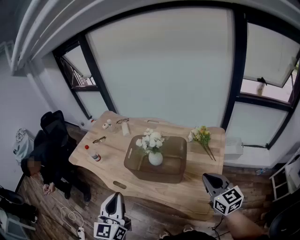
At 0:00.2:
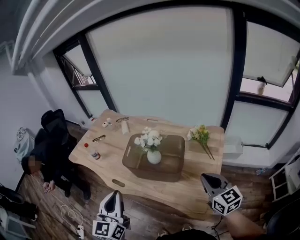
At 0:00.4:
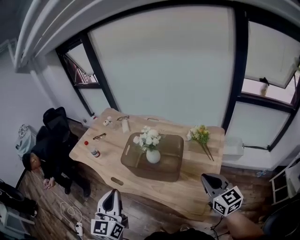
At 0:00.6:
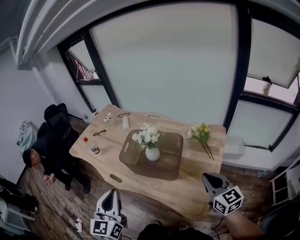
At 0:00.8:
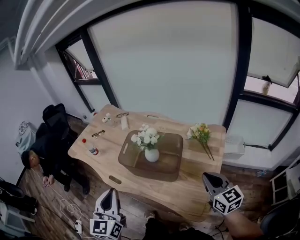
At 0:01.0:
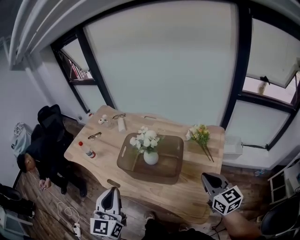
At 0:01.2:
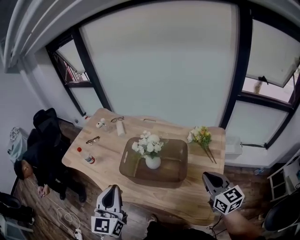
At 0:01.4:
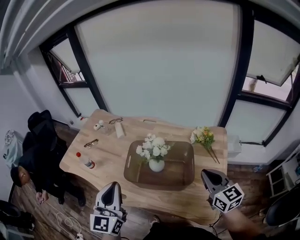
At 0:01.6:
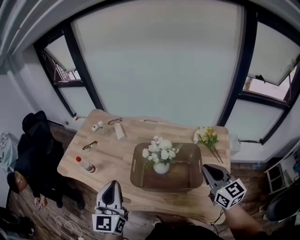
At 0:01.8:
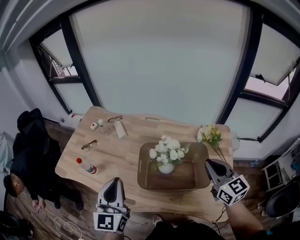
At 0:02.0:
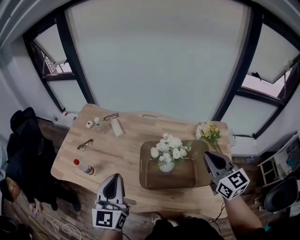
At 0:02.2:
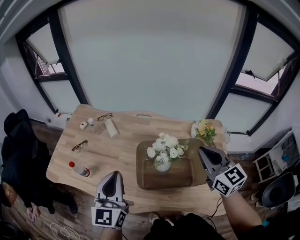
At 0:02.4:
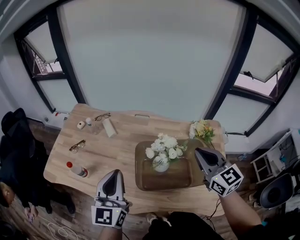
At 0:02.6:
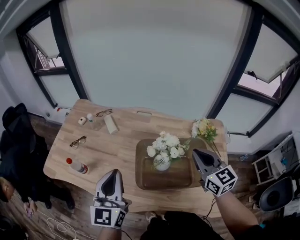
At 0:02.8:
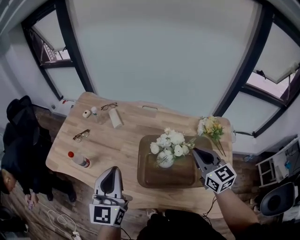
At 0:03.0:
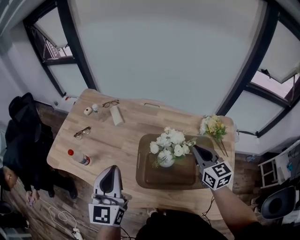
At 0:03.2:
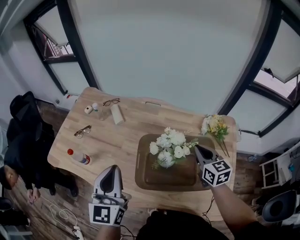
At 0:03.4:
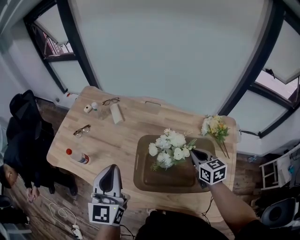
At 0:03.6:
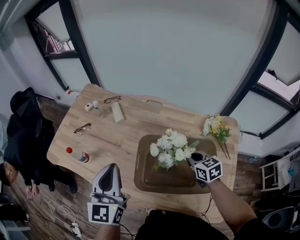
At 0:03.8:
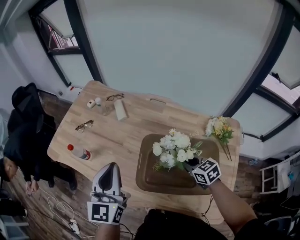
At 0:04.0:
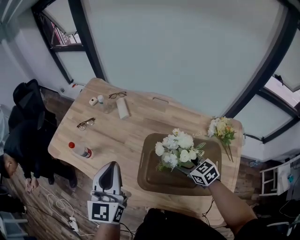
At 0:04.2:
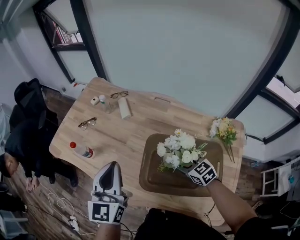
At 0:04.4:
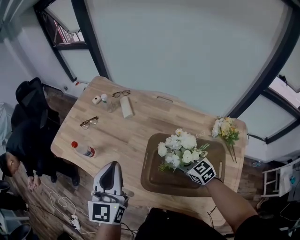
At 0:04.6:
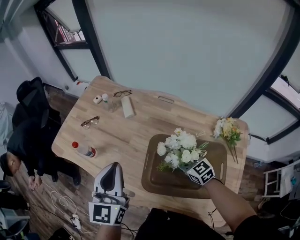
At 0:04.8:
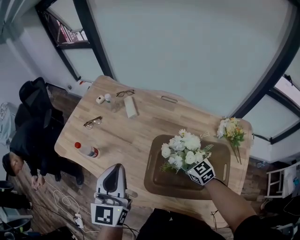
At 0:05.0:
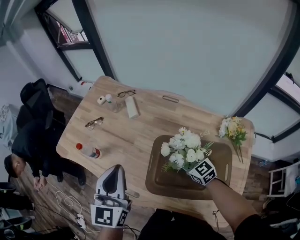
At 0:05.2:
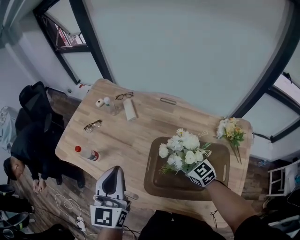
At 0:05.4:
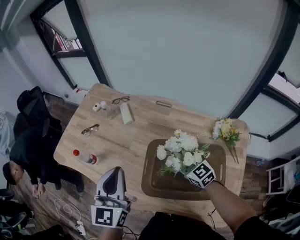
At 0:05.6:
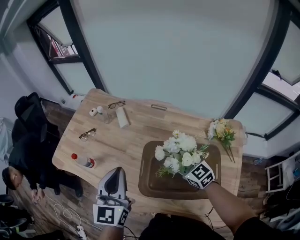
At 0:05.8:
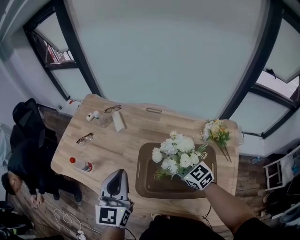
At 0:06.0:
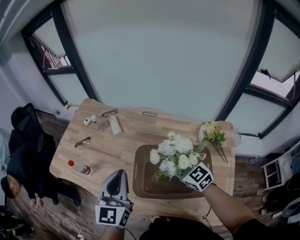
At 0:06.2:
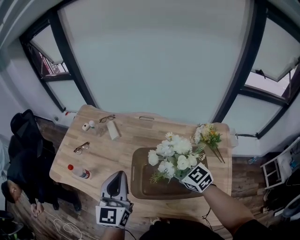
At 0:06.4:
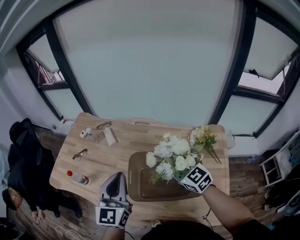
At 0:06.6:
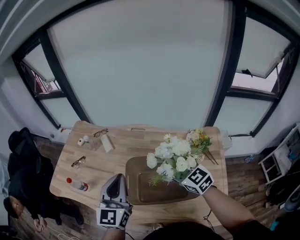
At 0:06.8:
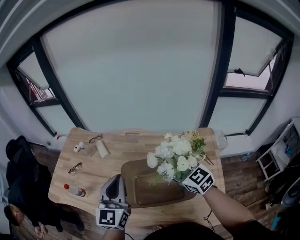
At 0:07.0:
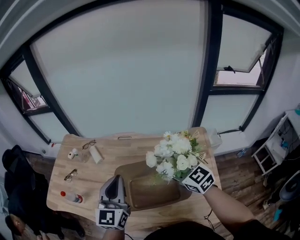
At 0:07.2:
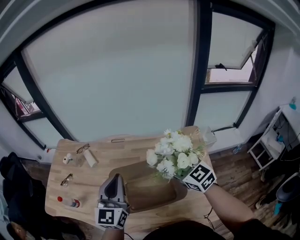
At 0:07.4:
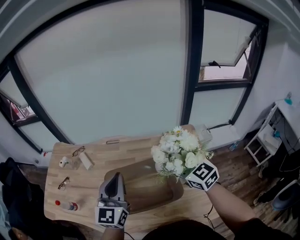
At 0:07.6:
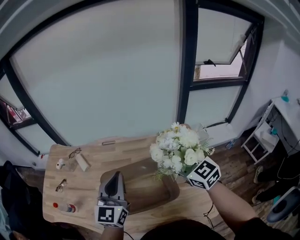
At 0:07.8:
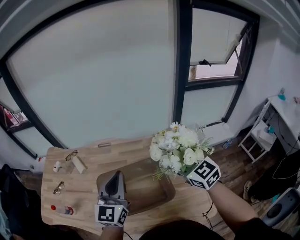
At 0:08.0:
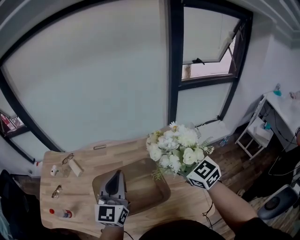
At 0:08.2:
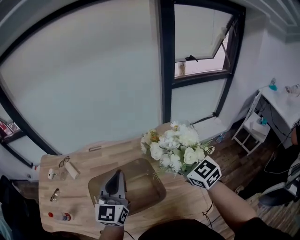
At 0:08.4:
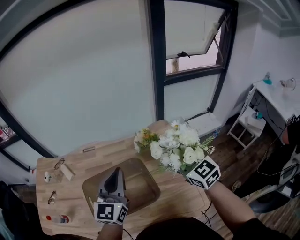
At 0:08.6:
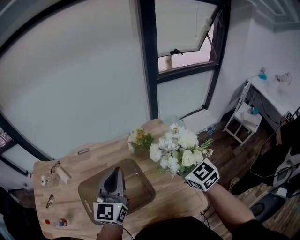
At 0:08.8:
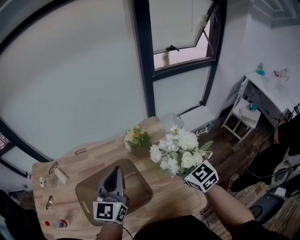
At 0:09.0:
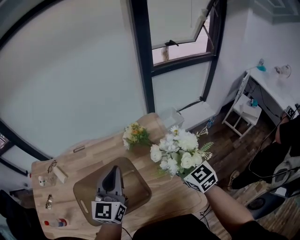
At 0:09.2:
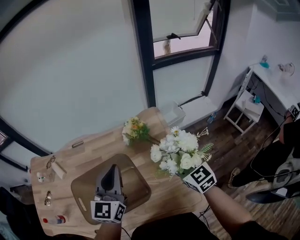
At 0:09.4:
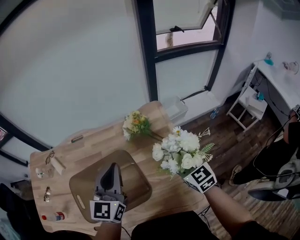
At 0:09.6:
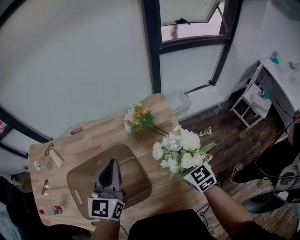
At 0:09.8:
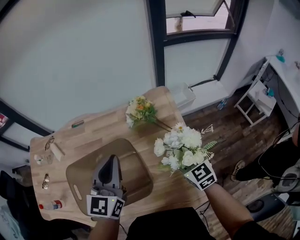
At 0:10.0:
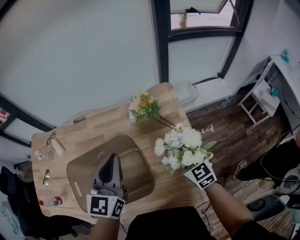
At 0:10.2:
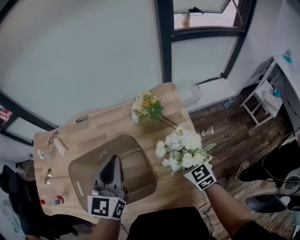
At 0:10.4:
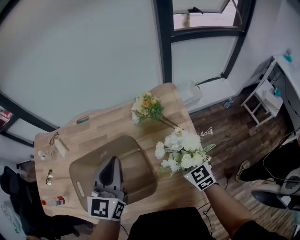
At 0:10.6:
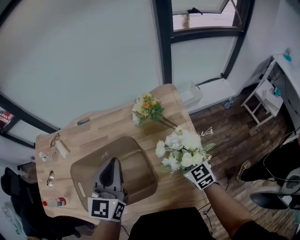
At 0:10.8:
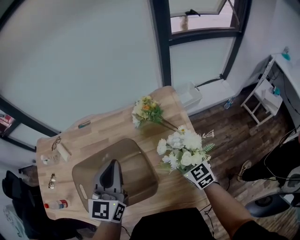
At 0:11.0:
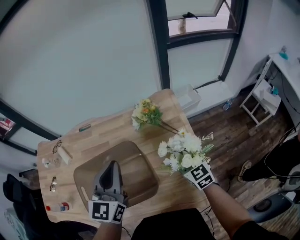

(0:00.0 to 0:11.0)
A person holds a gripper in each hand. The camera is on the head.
0:00.0 - 0:01.6: The left gripper goes approximately 20 cm forward. The right gripper travels forward and to the left by about 15 cm.
0:01.6 - 0:03.2: The left gripper shifts about 10 cm forward; the right gripper travels forward and downward by approximately 20 cm.
0:03.2 - 0:04.8: The right gripper heads to the left, downward and forward, covering approximately 15 cm, rotates about 30 degrees, and opens up.
0:04.8 - 0:06.2: The right gripper travels upward by approximately 15 cm. The left gripper shifts about 5 cm to the right.
0:06.2 - 0:07.8: The left gripper goes approximately 20 cm to the right, and changes its angle by roughly 20 degrees. Meanwhile the right gripper travels to the right and upward by approximately 25 cm, and swivels some 20 degrees.
0:07.8 - 0:09.4: The left gripper is displaced to the right and downward by about 15 cm, while the right gripper travels downward and to the right by roughly 20 cm.
0:09.4 - 0:11.0: The right gripper goes about 10 cm downward.

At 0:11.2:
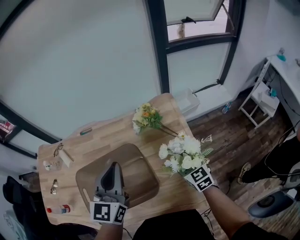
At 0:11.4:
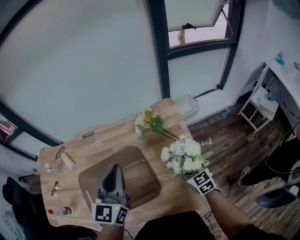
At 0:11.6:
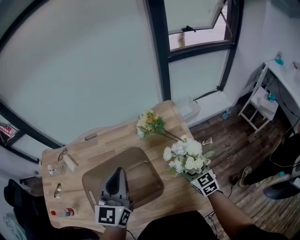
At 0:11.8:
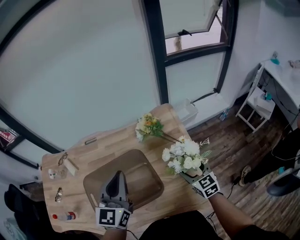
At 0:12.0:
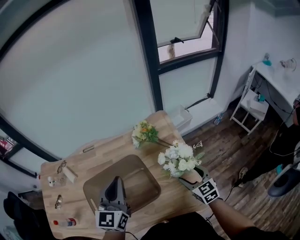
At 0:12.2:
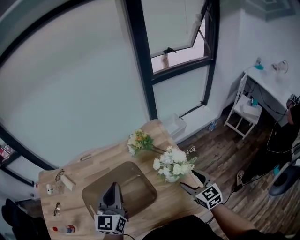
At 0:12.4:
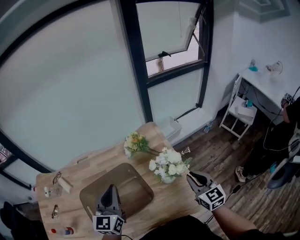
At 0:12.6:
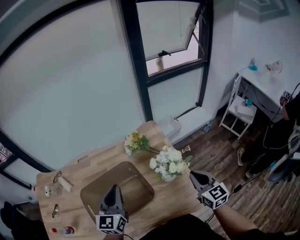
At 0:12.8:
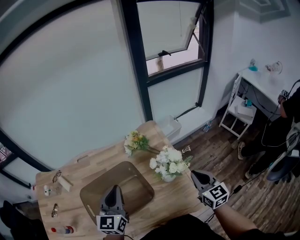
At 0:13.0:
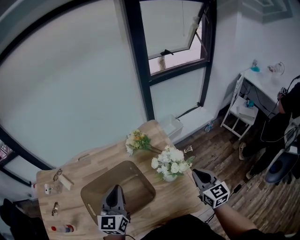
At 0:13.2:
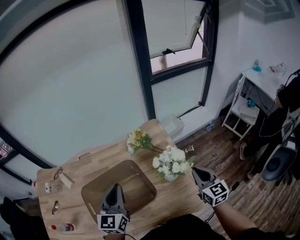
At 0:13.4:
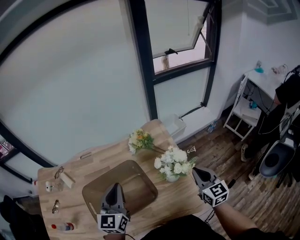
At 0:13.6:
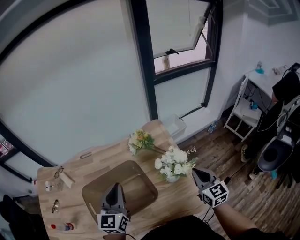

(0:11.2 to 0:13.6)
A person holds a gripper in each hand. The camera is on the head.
0:11.2 - 0:12.4: The right gripper is displaced upward, backward and to the right by some 20 cm, rotates some 20 degrees, and closes up.
0:12.4 - 0:13.6: There are only small adjustments of the grippers.

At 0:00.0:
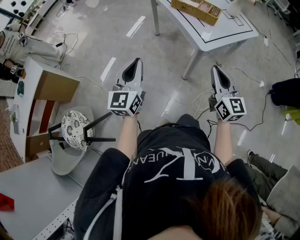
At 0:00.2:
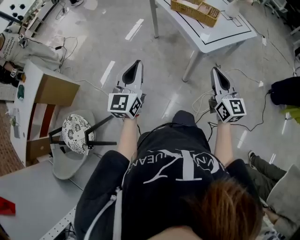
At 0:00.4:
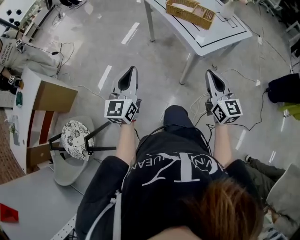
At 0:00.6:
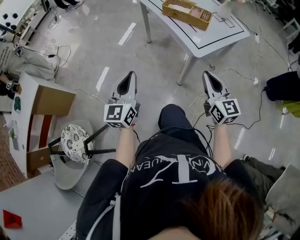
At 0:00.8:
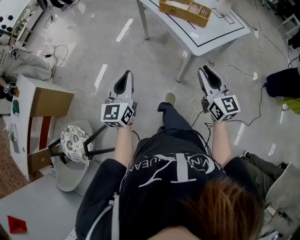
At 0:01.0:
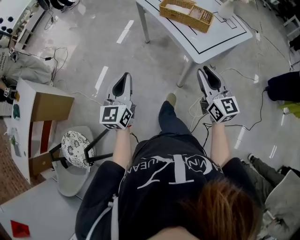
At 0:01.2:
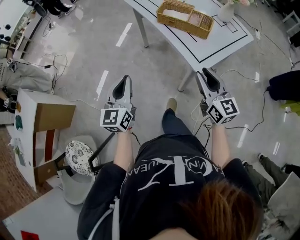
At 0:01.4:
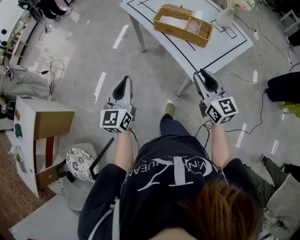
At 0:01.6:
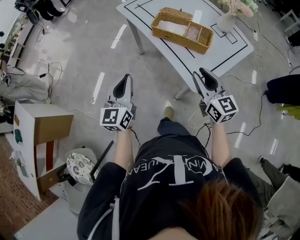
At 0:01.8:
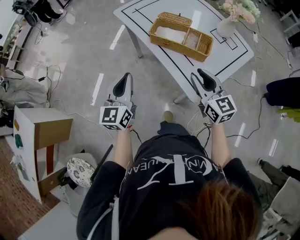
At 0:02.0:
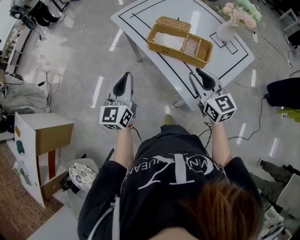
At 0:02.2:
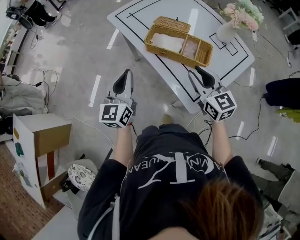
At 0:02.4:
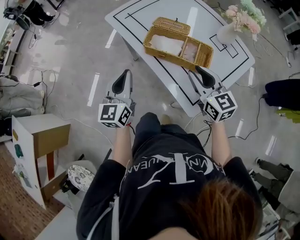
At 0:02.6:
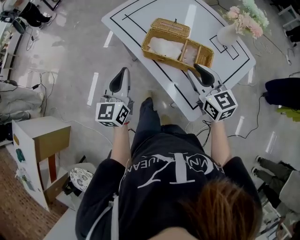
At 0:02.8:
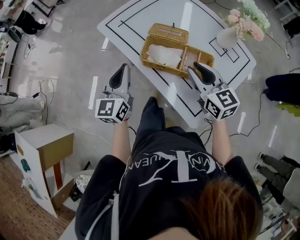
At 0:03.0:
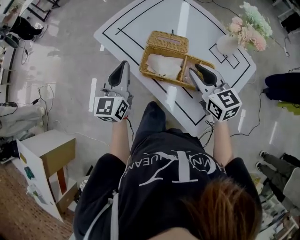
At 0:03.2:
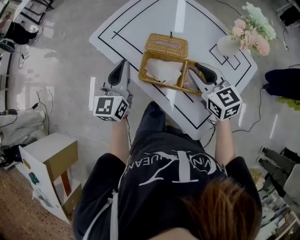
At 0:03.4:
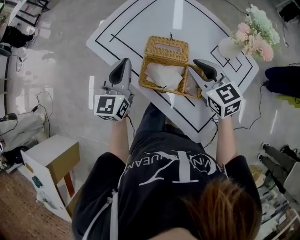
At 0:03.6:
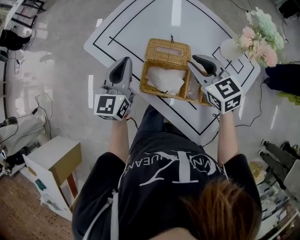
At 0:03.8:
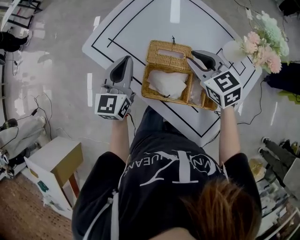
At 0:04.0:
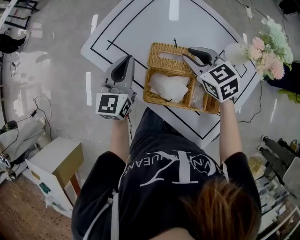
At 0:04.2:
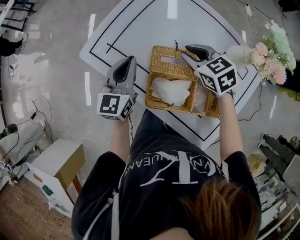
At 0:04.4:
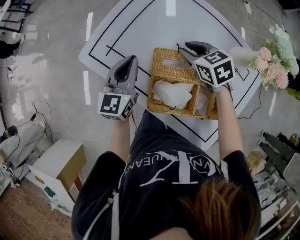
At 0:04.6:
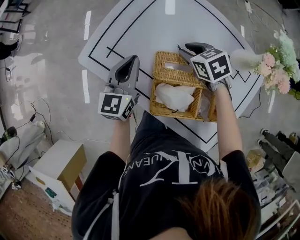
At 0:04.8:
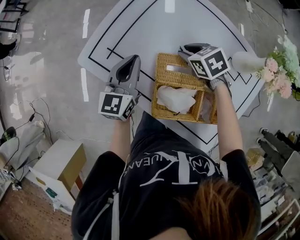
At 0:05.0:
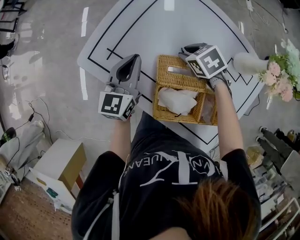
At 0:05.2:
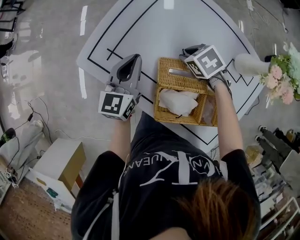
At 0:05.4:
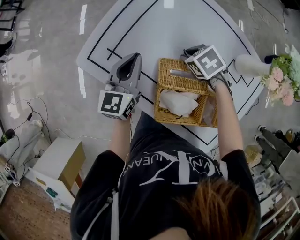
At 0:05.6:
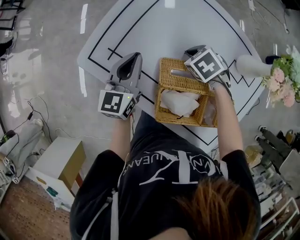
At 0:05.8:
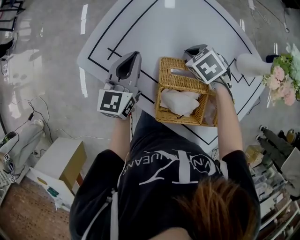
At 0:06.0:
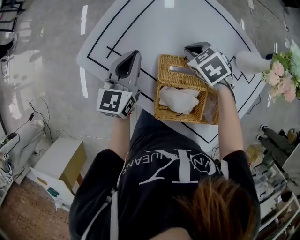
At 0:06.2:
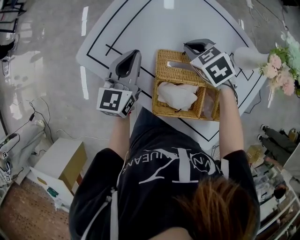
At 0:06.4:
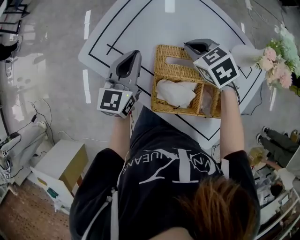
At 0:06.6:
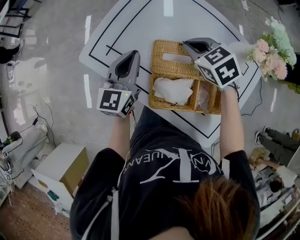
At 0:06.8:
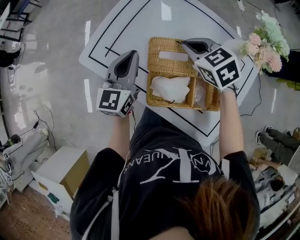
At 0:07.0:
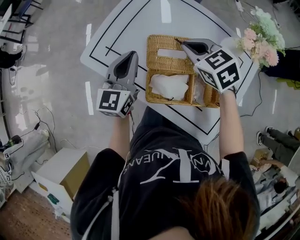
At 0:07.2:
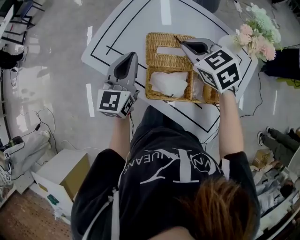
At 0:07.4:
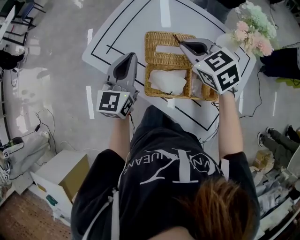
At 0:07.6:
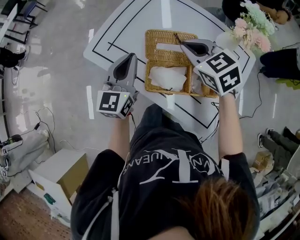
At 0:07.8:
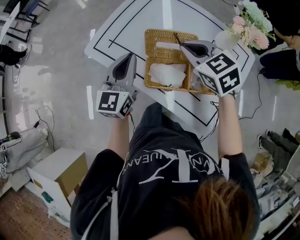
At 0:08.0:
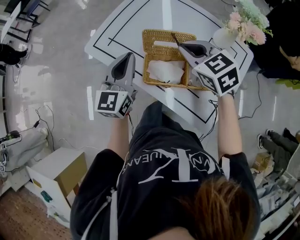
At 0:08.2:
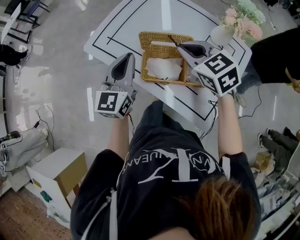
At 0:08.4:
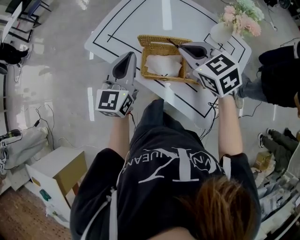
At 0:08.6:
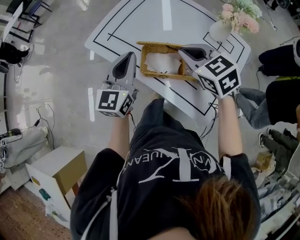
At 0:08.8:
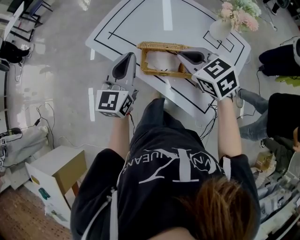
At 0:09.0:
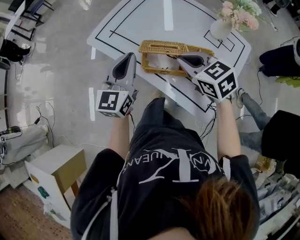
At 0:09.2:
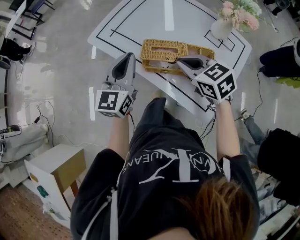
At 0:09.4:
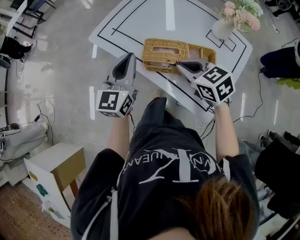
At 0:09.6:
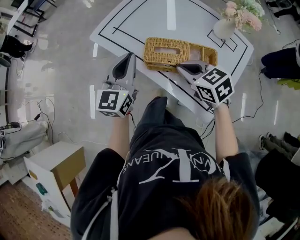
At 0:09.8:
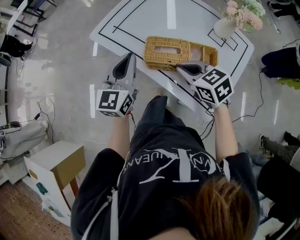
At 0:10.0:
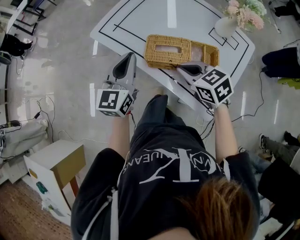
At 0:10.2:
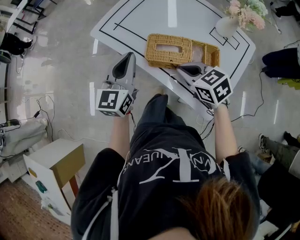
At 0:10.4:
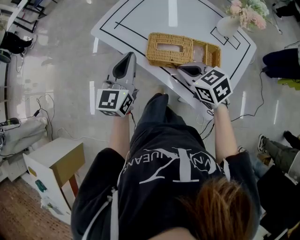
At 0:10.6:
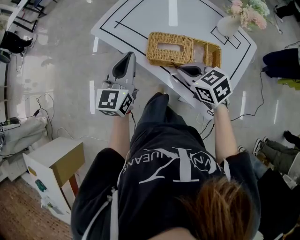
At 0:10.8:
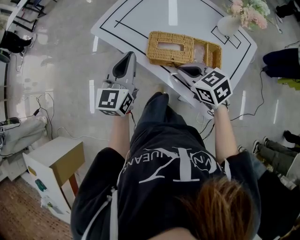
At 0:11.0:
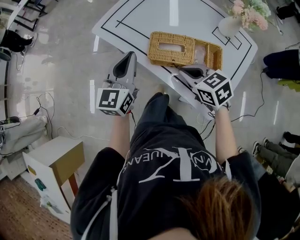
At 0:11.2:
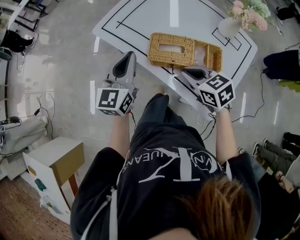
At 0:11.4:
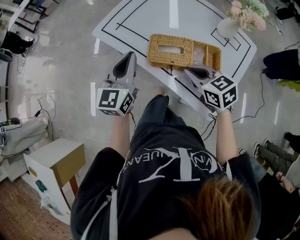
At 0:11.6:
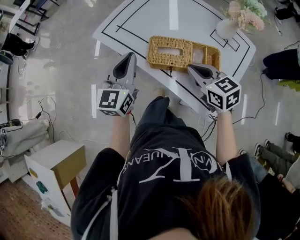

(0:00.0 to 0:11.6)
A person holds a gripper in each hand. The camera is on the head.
0:00.0 - 0:01.4: The grippers both shift forward by about 20 cm. The right gripper opens up.
0:01.4 - 0:02.8: Both grippers travel together forward, approximately 30 cm.
0:02.8 - 0:04.4: Both grippers travel together forward, some 25 cm. The right gripper points its fingers approximately 30 degrees further downward.
0:04.4 - 0:05.8: The right gripper shifts about 10 cm downward, turns by roughly 30 degrees, and closes up. Meanwhile the left gripper ends up approximately 5 cm from where it was.
0:05.8 - 0:07.2: The right gripper heads upward and backward, covering approximately 20 cm, and points its fingers about 30 degrees further upward, while the left gripper is displaced backward and upward by approximately 10 cm.
0:07.2 - 0:08.8: The two grippers go approximately 15 cm backward.
0:08.8 - 0:10.2: The right gripper travels downward and backward by some 10 cm.
0:10.2 - 0:11.6: The grippers stay close to where they were, moving slightly.
